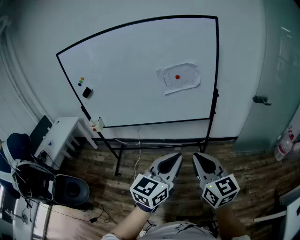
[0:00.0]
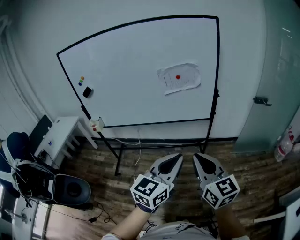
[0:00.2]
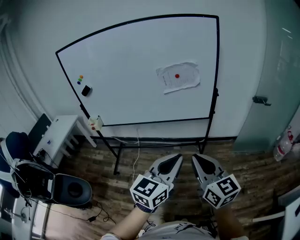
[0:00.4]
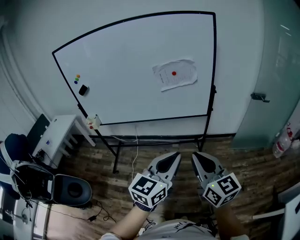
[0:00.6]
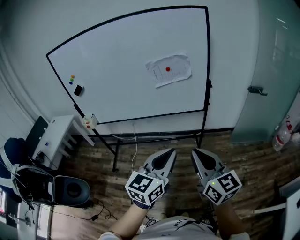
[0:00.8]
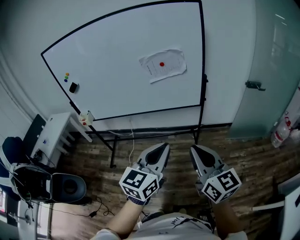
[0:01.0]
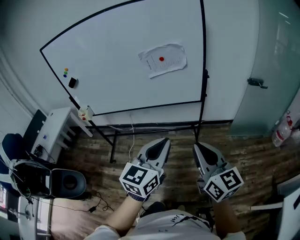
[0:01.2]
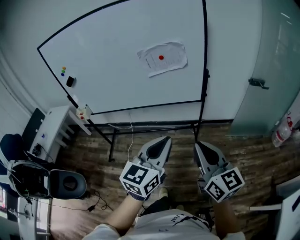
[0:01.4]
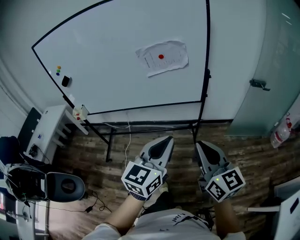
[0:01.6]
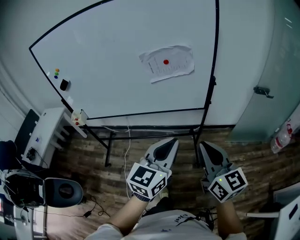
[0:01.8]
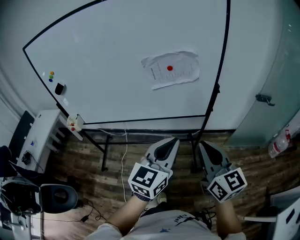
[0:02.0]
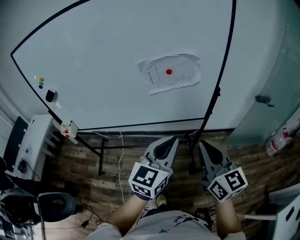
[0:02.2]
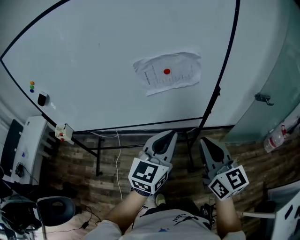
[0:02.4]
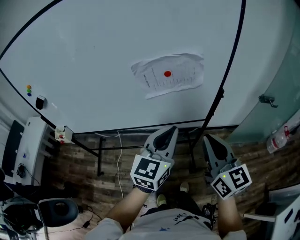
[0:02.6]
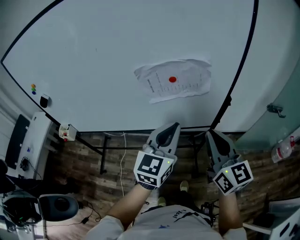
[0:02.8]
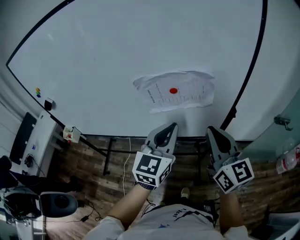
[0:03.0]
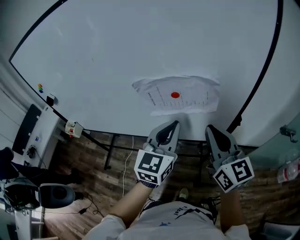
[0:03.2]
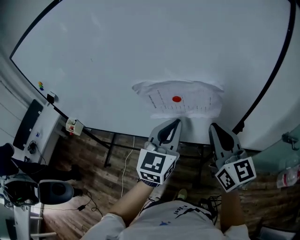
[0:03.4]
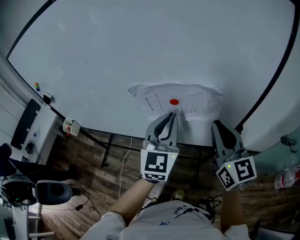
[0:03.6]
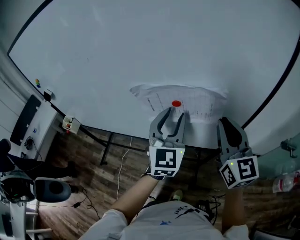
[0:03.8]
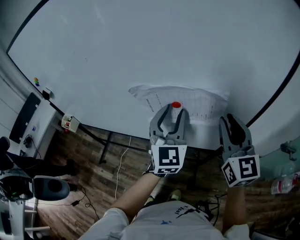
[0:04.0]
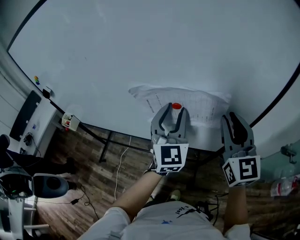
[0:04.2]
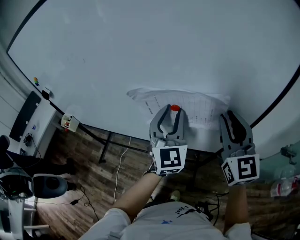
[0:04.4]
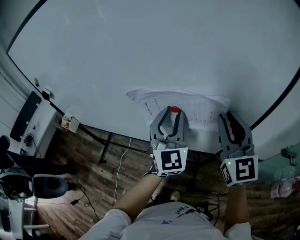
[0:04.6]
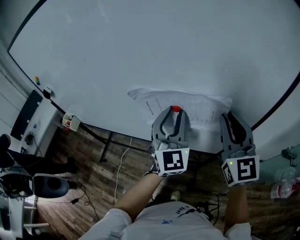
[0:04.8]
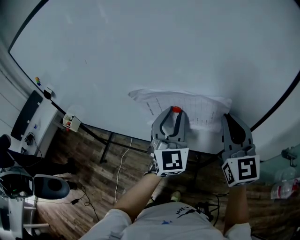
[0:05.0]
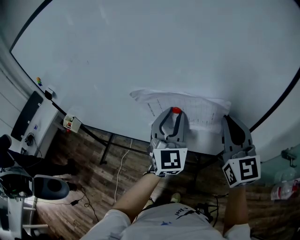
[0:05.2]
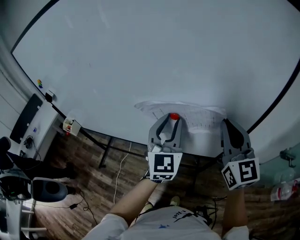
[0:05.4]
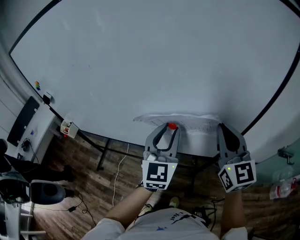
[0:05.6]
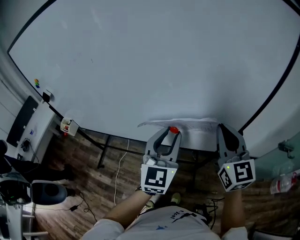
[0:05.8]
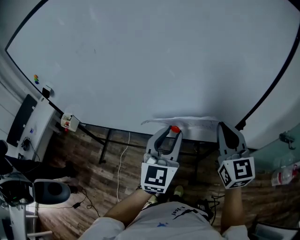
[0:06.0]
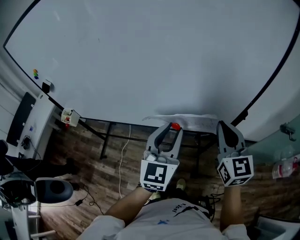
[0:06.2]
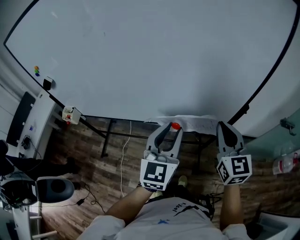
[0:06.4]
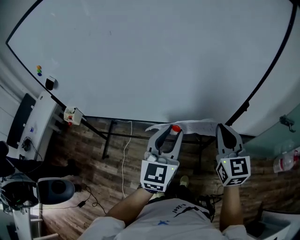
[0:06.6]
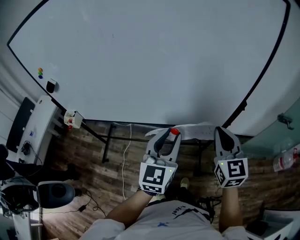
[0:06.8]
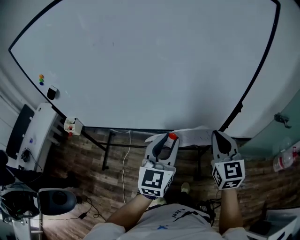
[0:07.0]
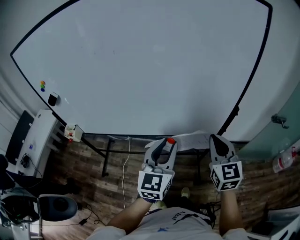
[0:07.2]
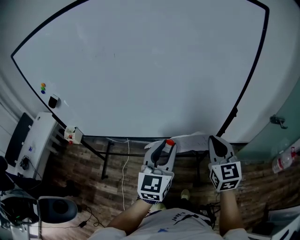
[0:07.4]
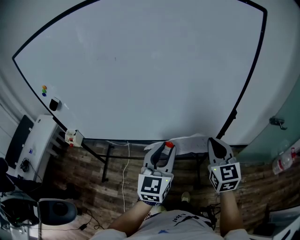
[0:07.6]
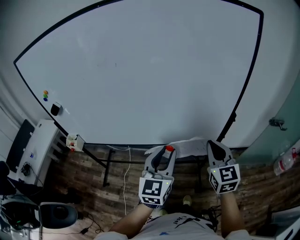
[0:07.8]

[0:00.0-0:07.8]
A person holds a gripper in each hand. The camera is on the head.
0:00.0 to 0:01.6: The left gripper is displaced forward by roughly 10 cm. Meanwhile the right gripper is displaced forward and to the right by about 10 cm.
0:01.6 to 0:03.2: The pair of grippers is taken forward, some 40 cm.
0:03.2 to 0:04.6: Both grippers travel together forward, about 10 cm. The left gripper swivels approximately 30 degrees, and opens up, while the right gripper changes its angle by some 20 degrees.
0:04.6 to 0:06.2: The left gripper travels backward by some 15 cm, and changes its angle by approximately 20 degrees. Meanwhile the right gripper is displaced backward and downward by some 10 cm.
0:06.2 to 0:07.8: Both grippers move backward, about 10 cm.

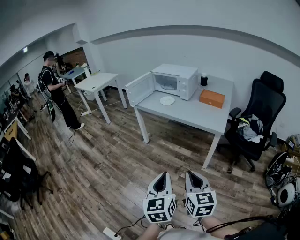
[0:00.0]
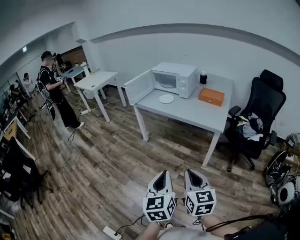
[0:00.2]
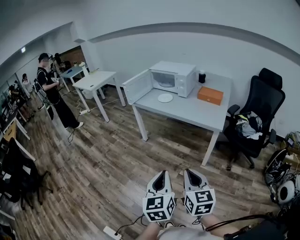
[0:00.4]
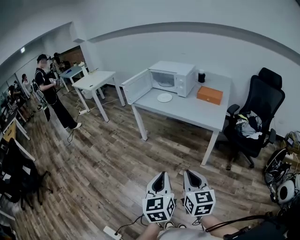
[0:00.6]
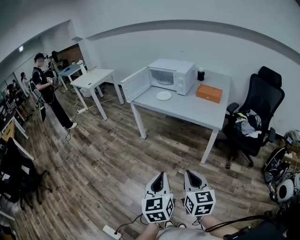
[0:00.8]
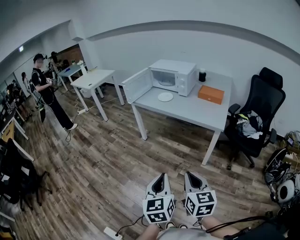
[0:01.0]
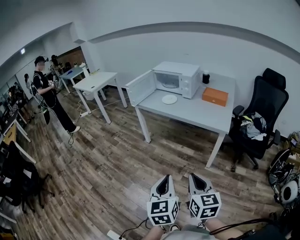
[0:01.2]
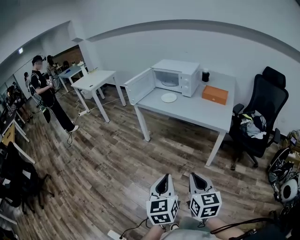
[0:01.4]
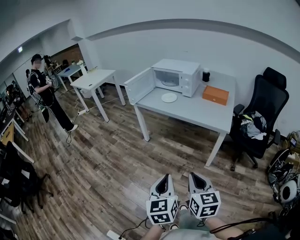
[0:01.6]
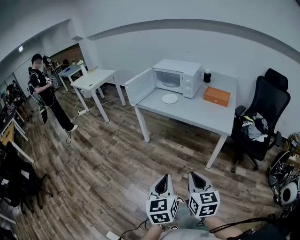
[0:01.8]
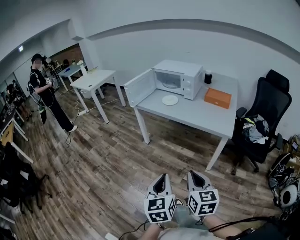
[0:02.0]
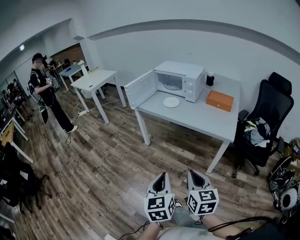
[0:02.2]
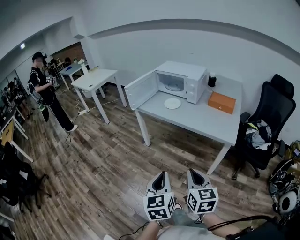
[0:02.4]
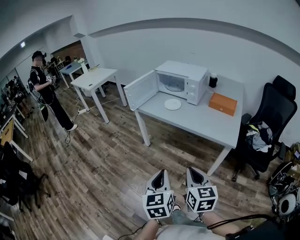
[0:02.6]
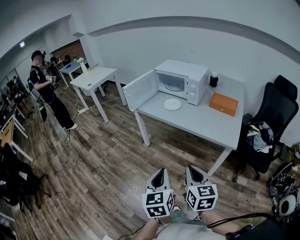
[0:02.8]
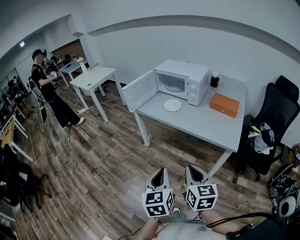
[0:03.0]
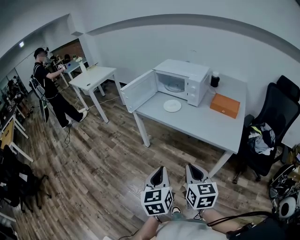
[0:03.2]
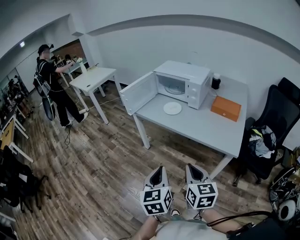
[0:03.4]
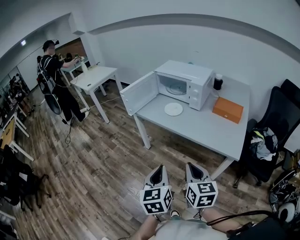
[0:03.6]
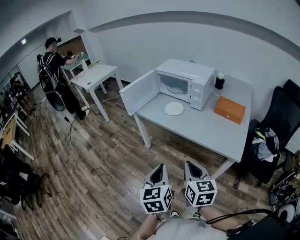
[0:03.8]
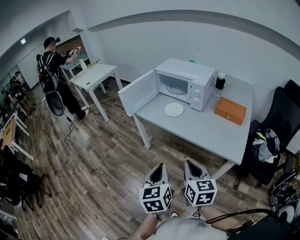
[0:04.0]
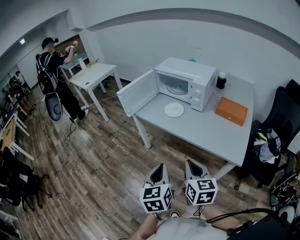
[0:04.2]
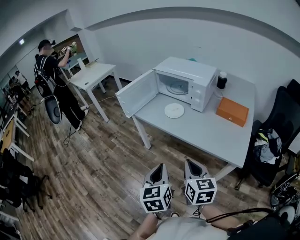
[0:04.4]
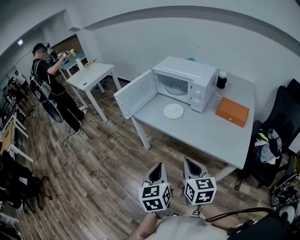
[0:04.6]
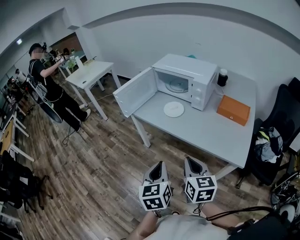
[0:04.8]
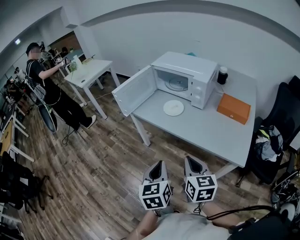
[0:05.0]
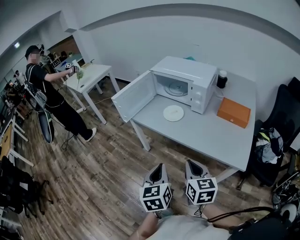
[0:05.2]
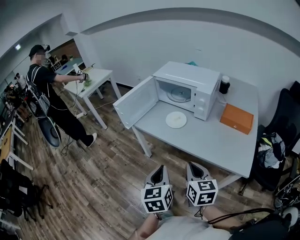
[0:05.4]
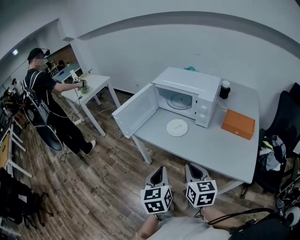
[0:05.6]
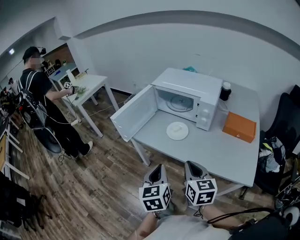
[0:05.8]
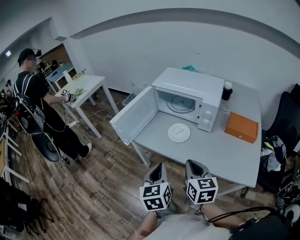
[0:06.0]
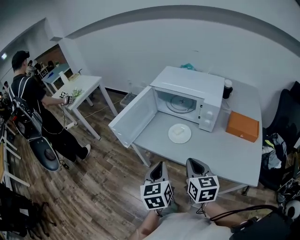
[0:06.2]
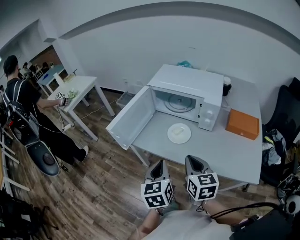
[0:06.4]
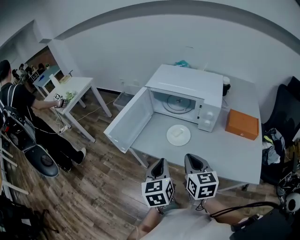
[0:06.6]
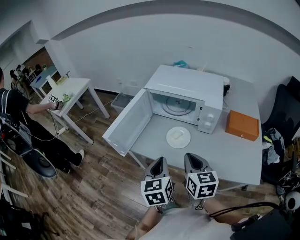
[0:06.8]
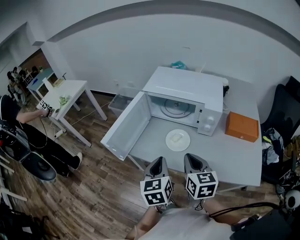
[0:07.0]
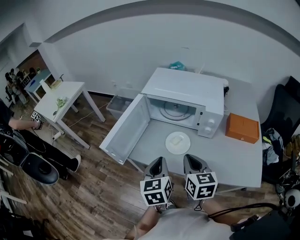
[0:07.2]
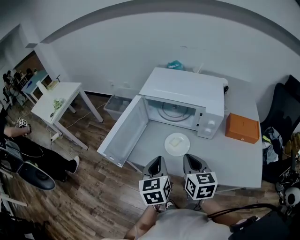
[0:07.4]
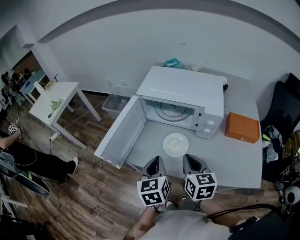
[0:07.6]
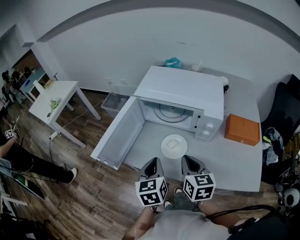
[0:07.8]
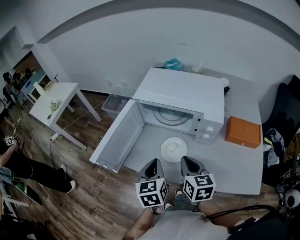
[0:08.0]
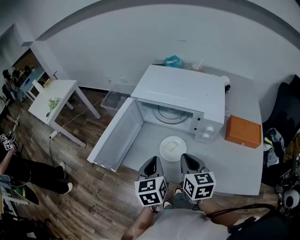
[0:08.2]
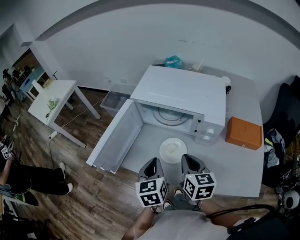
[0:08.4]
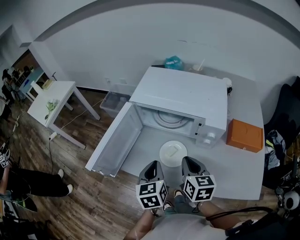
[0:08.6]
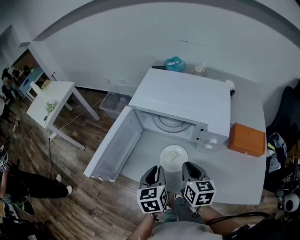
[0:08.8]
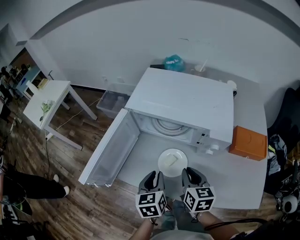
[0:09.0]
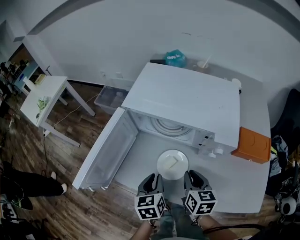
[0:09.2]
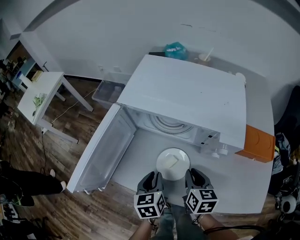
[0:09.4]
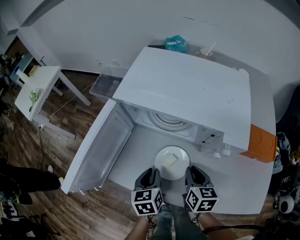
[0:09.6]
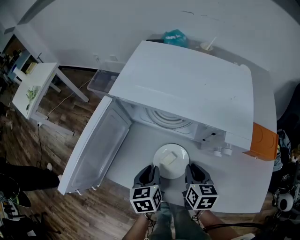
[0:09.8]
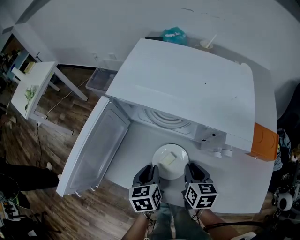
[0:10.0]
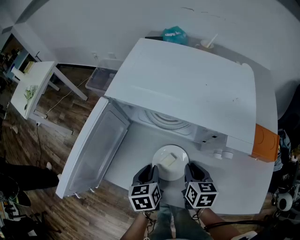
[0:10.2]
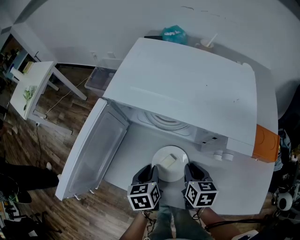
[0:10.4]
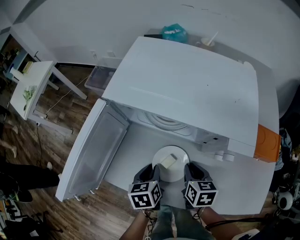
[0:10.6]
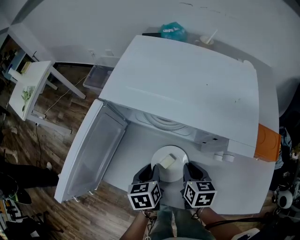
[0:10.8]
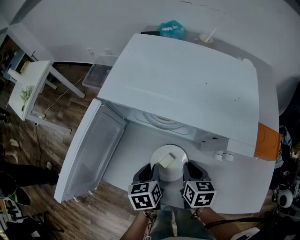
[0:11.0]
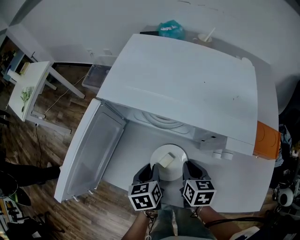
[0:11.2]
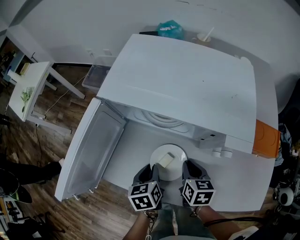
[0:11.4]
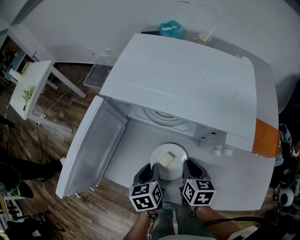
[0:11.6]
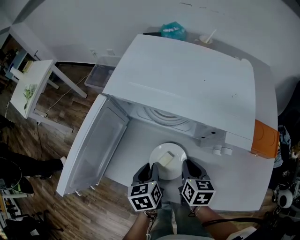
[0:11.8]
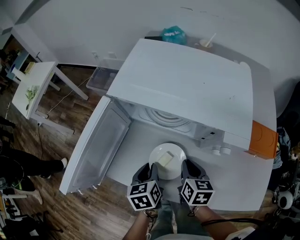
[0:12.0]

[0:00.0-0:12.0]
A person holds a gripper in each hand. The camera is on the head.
0:00.0 to 0:01.6: The right gripper ends up approximately 5 cm from where it was, while the left gripper is displaced forward by some 5 cm.
0:01.6 to 0:03.0: The grippers both shift forward by about 20 cm.
0:03.0 to 0:04.4: The grippers both shift forward by roughly 15 cm.
0:04.4 to 0:06.0: The two grippers go roughly 20 cm forward.
0:06.0 to 0:07.6: The two grippers go some 15 cm forward.
0:07.6 to 0:09.0: The left gripper moves downward and forward, some 10 cm. The right gripper travels forward and downward by roughly 10 cm.
0:09.0 to 0:10.4: The right gripper shifts some 10 cm downward. Meanwhile the left gripper goes about 15 cm downward and forward.
0:10.4 to 0:12.0: The grippers stay close to where they were, moving slightly.

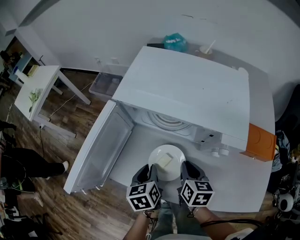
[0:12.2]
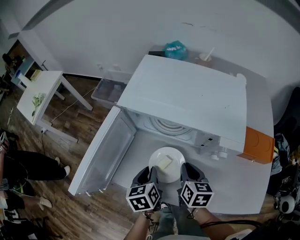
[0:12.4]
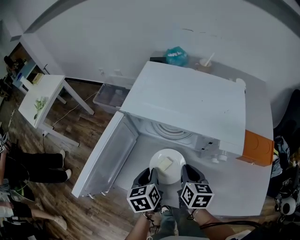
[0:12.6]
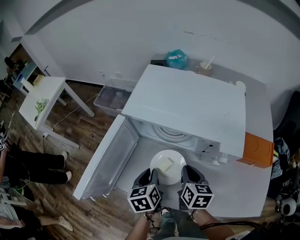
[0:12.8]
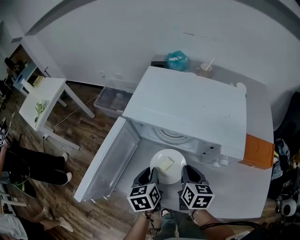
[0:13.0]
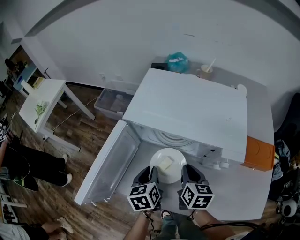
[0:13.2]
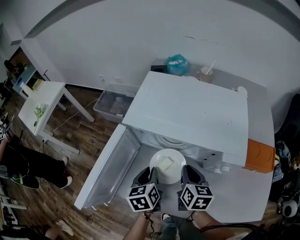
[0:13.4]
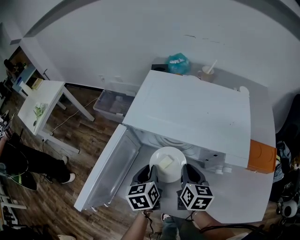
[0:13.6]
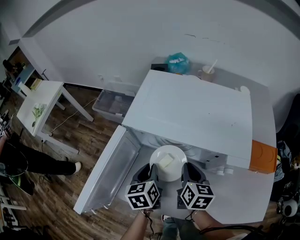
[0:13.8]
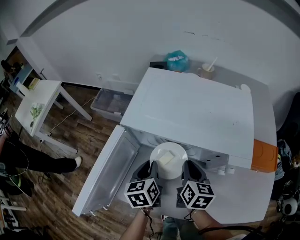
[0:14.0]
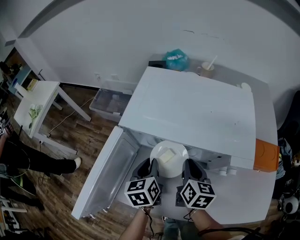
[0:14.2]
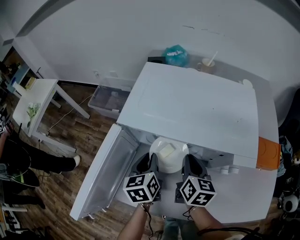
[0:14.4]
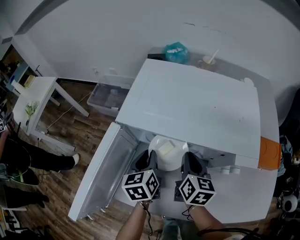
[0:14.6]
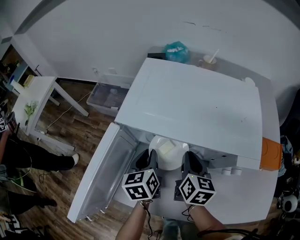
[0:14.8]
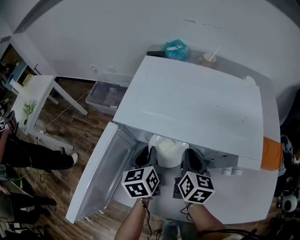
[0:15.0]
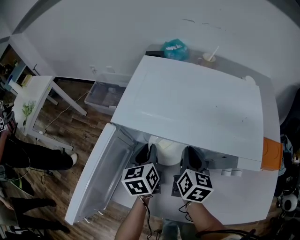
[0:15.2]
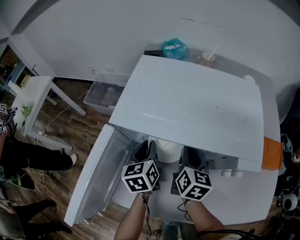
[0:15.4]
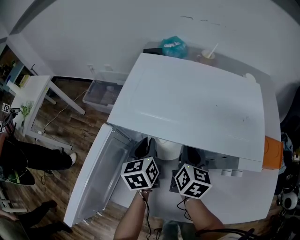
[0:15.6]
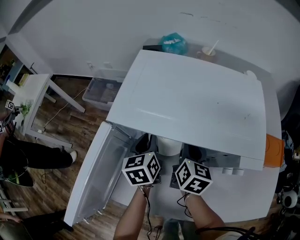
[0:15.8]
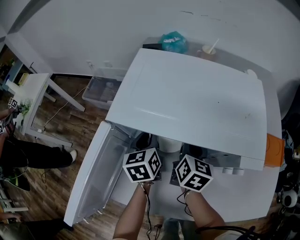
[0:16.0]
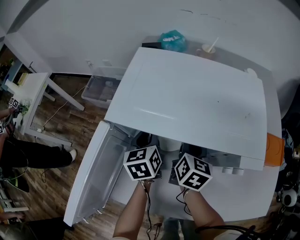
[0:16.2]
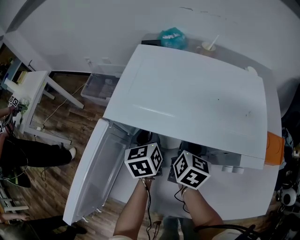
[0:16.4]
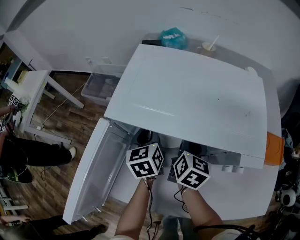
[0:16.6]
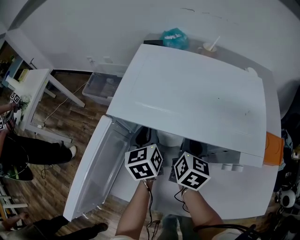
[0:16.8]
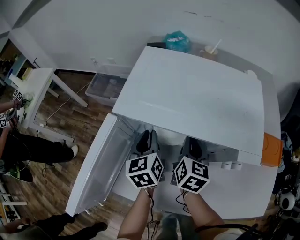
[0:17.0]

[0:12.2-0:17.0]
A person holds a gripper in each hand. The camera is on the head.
0:12.2 to 0:13.8: Both grippers travel together forward, about 10 cm.
0:13.8 to 0:15.4: The grippers both shift forward by roughly 10 cm.
0:15.4 to 0:17.0: The grippers move only a little.
